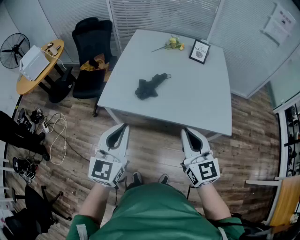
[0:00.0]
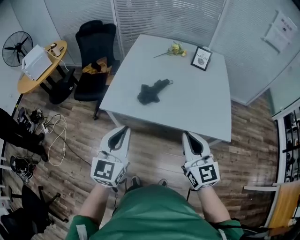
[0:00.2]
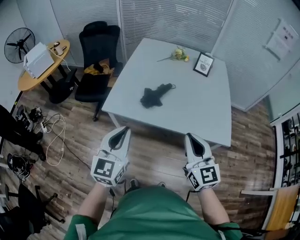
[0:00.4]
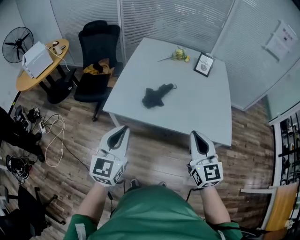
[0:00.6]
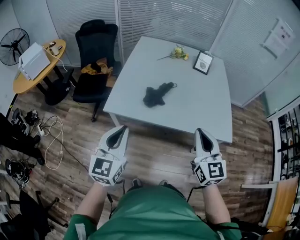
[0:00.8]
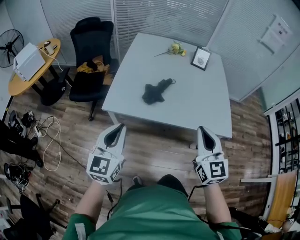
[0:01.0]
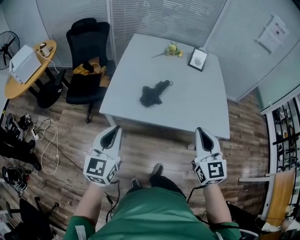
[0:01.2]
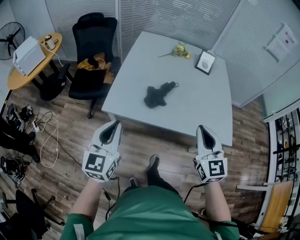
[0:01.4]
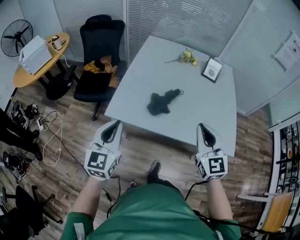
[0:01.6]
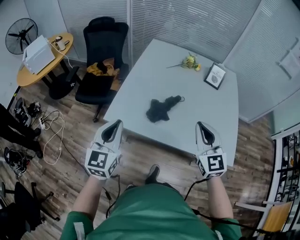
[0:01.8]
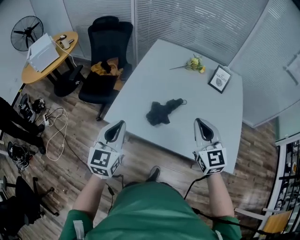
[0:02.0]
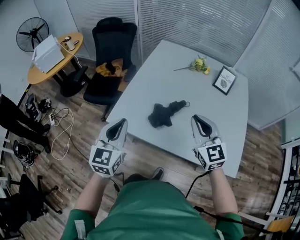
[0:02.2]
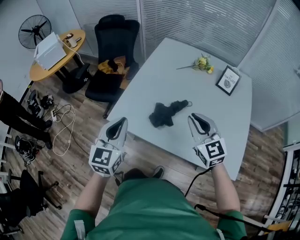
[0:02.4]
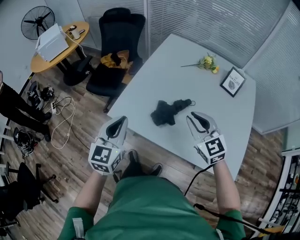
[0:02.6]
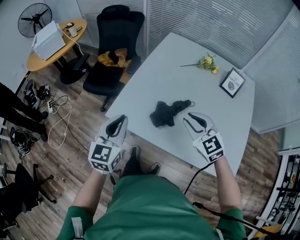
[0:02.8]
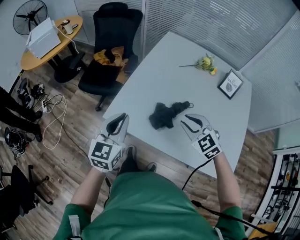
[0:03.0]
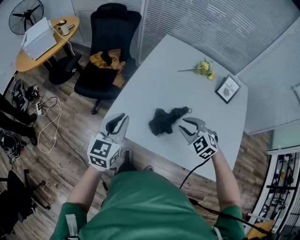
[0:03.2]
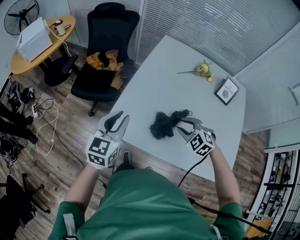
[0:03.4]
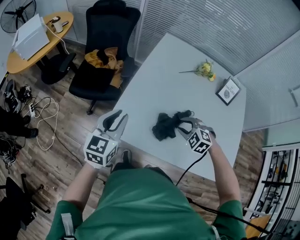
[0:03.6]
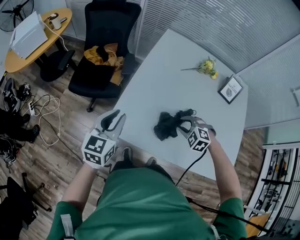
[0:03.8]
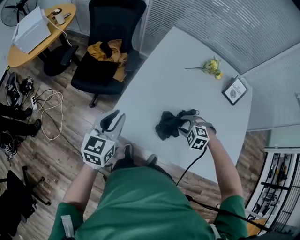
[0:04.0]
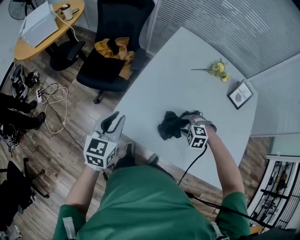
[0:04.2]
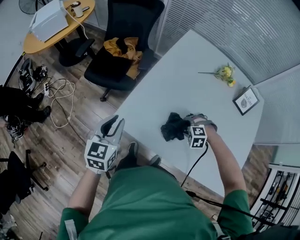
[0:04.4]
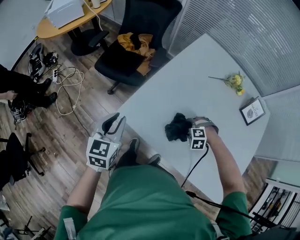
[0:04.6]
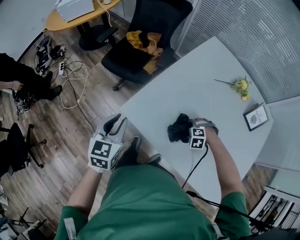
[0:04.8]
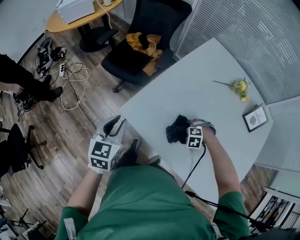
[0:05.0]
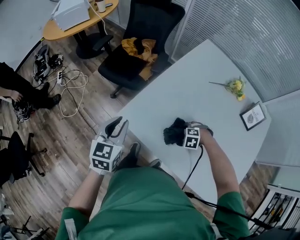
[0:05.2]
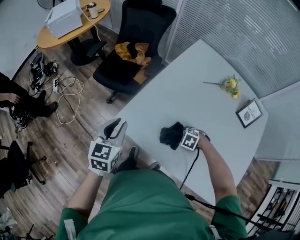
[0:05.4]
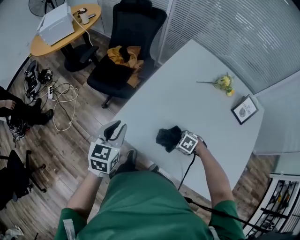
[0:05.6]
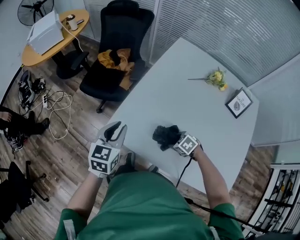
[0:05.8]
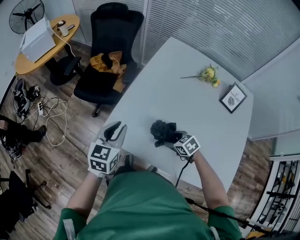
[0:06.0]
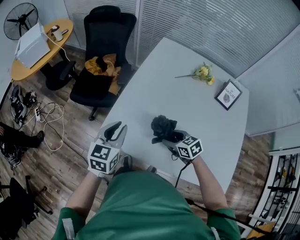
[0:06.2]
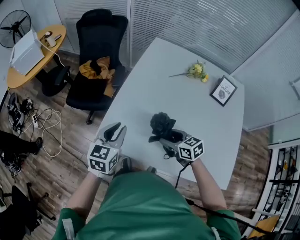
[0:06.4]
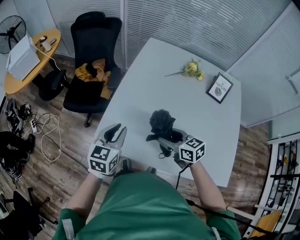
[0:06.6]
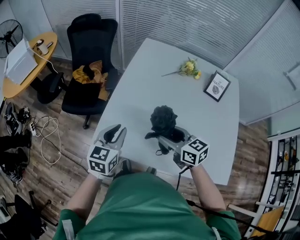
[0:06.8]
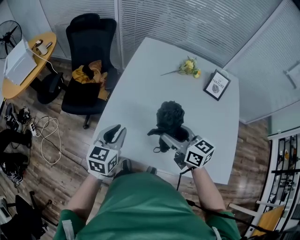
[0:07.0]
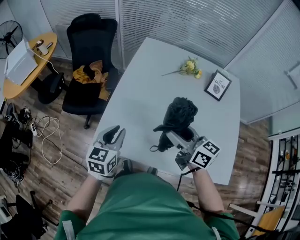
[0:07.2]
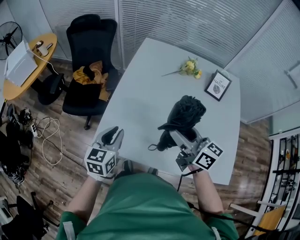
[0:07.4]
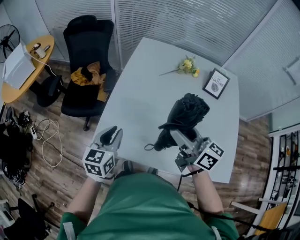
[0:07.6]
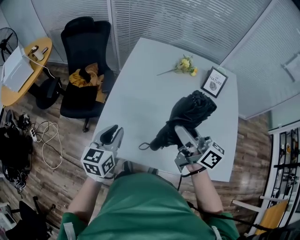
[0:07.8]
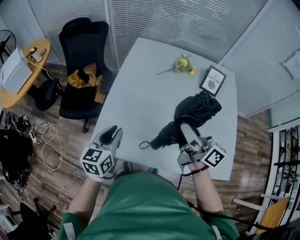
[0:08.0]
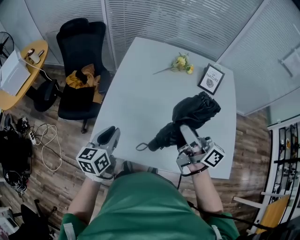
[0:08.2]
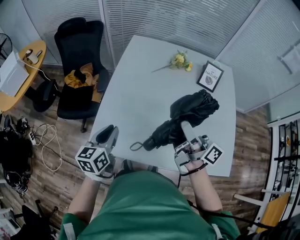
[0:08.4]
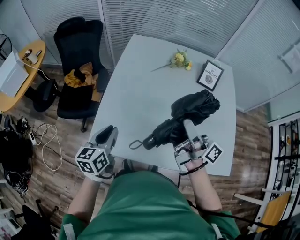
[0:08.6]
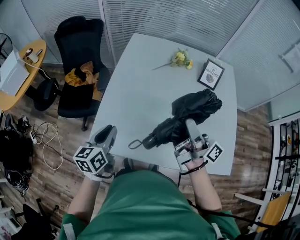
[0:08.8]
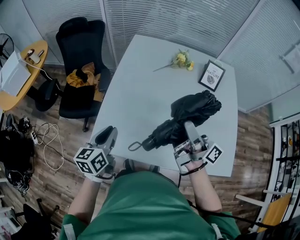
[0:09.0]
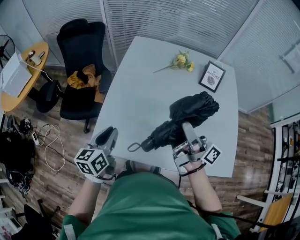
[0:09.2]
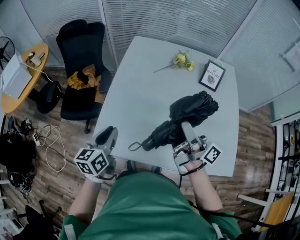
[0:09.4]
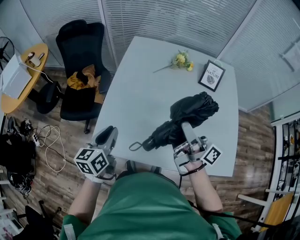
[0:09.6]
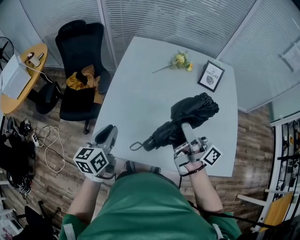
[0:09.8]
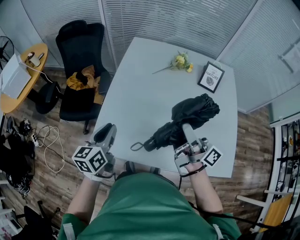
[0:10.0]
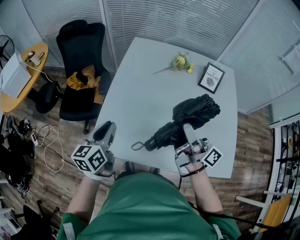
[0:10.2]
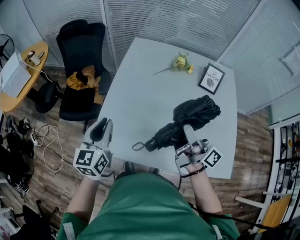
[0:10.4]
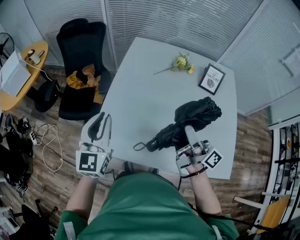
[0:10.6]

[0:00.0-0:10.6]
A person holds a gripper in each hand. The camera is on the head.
0:00.0 to 0:01.6: The left gripper moves to the left and forward, some 20 cm. The right gripper moves forward and to the left, some 15 cm.
0:01.6 to 0:03.0: The right gripper heads forward and downward, covering some 25 cm, and rotates roughly 50 degrees, while the left gripper heads forward, covering approximately 15 cm.
0:03.0 to 0:04.6: The right gripper shifts about 25 cm downward, tips its fingers downward by roughly 50 degrees, and opens; the left gripper shifts by some 15 cm, and rotates about 20 degrees.
0:04.6 to 0:06.0: The right gripper is displaced upward by some 5 cm, and twists approximately 70 degrees clockwise, seen from behind; the left gripper shifts by approximately 10 cm.
0:06.0 to 0:07.6: The right gripper heads upward, covering about 30 cm, and tips its fingers upward by about 60 degrees. The left gripper heads to the right, covering about 5 cm.
0:07.6 to 0:09.0: The right gripper shifts approximately 5 cm to the right, and swivels some 40 degrees.
0:09.0 to 0:10.6: The left gripper goes roughly 10 cm upward, and turns by roughly 40 degrees.

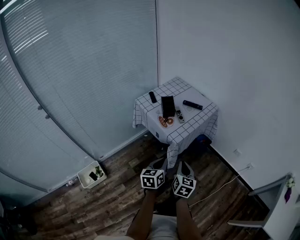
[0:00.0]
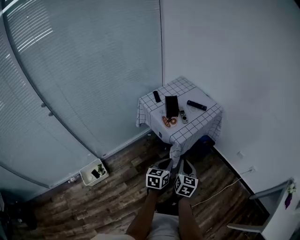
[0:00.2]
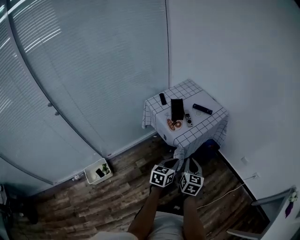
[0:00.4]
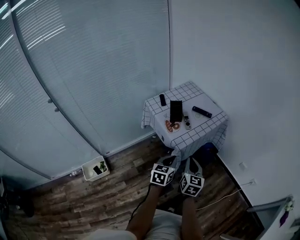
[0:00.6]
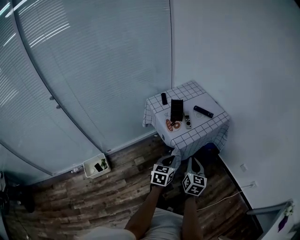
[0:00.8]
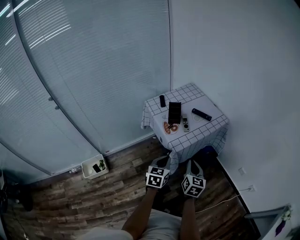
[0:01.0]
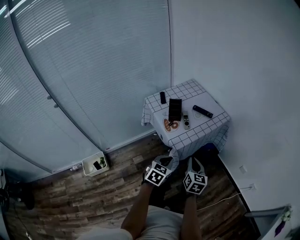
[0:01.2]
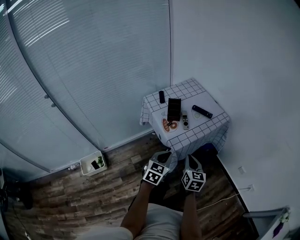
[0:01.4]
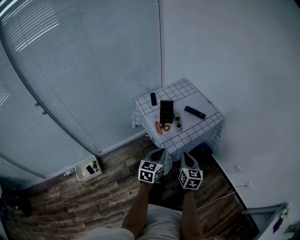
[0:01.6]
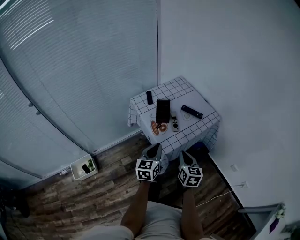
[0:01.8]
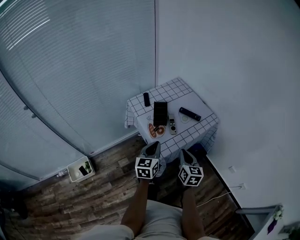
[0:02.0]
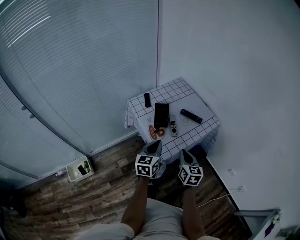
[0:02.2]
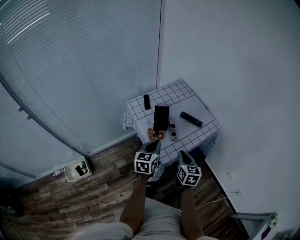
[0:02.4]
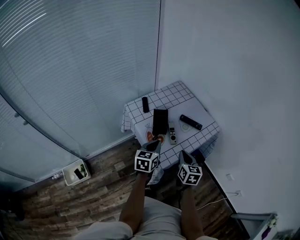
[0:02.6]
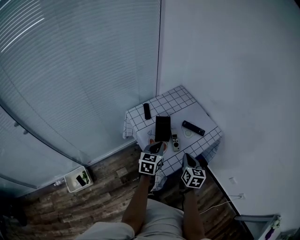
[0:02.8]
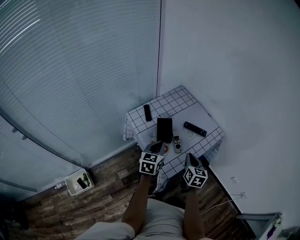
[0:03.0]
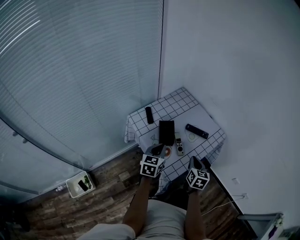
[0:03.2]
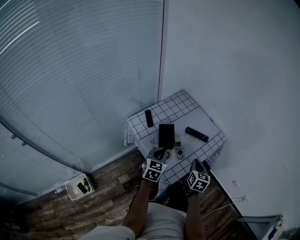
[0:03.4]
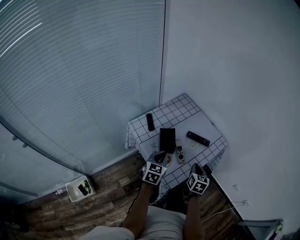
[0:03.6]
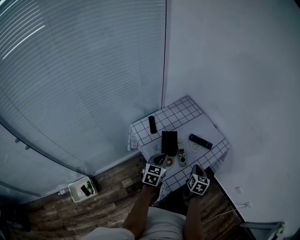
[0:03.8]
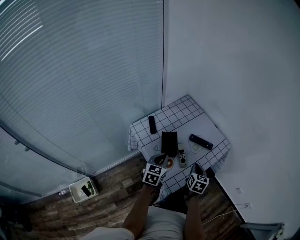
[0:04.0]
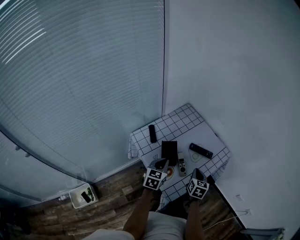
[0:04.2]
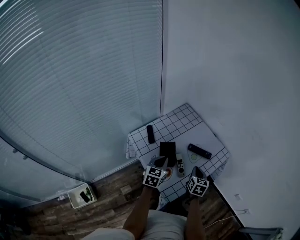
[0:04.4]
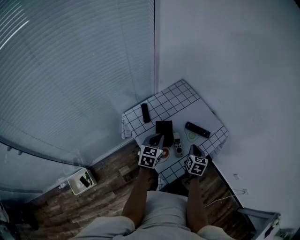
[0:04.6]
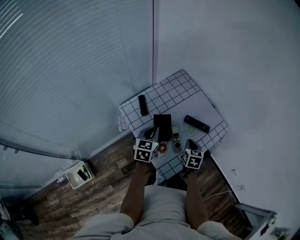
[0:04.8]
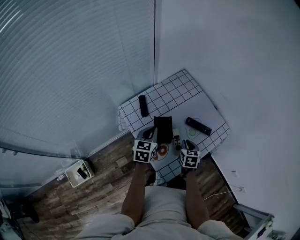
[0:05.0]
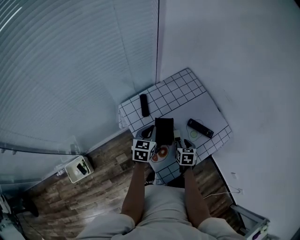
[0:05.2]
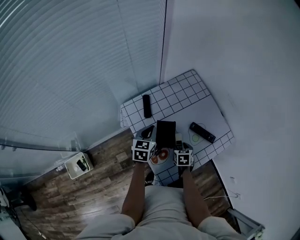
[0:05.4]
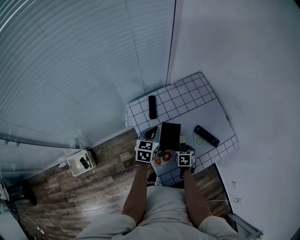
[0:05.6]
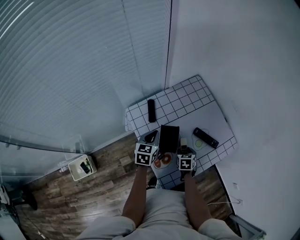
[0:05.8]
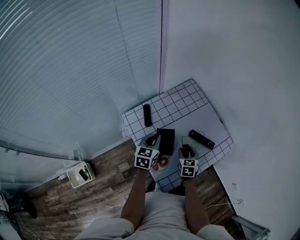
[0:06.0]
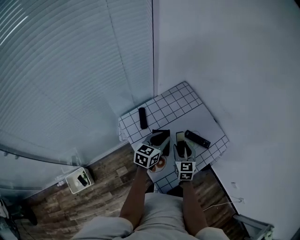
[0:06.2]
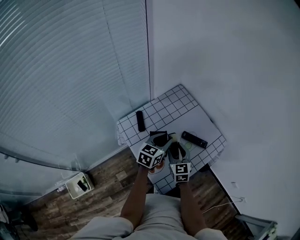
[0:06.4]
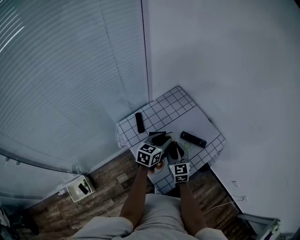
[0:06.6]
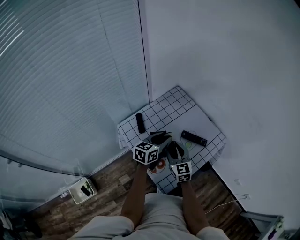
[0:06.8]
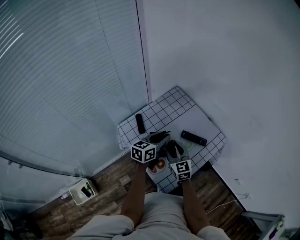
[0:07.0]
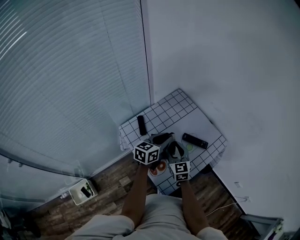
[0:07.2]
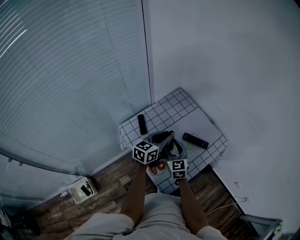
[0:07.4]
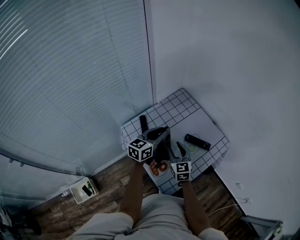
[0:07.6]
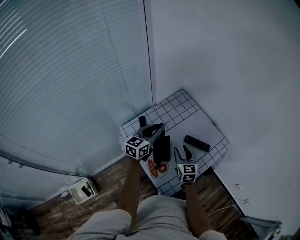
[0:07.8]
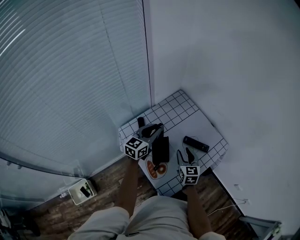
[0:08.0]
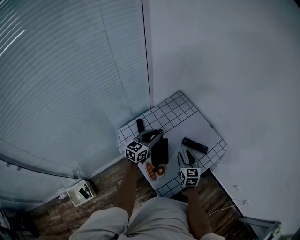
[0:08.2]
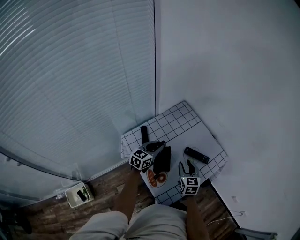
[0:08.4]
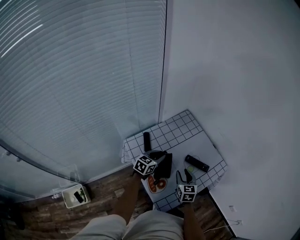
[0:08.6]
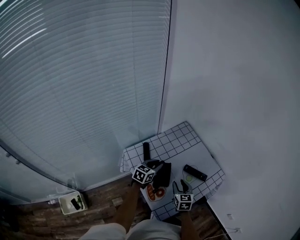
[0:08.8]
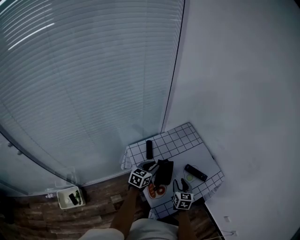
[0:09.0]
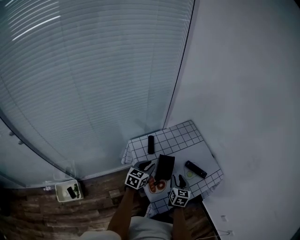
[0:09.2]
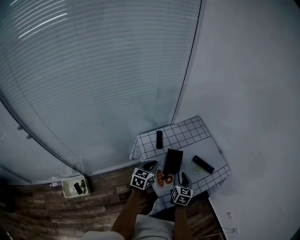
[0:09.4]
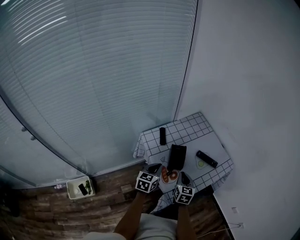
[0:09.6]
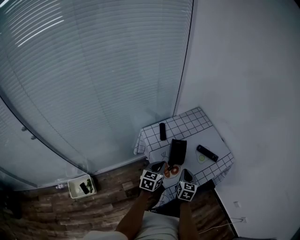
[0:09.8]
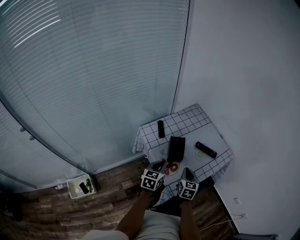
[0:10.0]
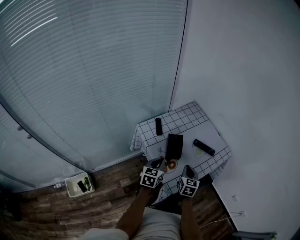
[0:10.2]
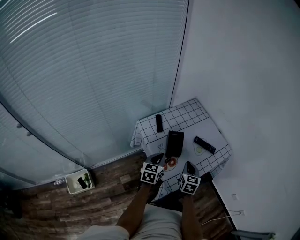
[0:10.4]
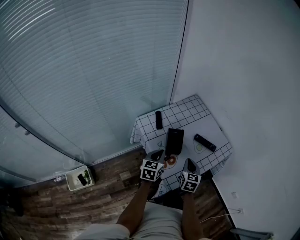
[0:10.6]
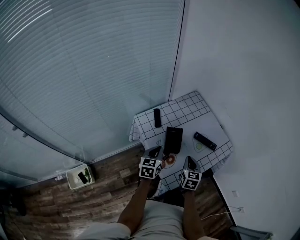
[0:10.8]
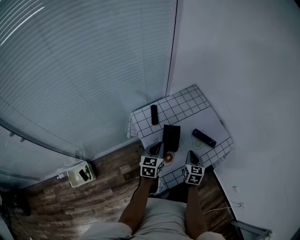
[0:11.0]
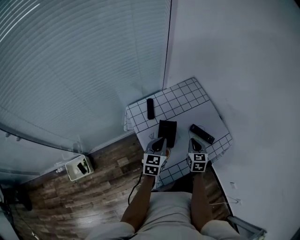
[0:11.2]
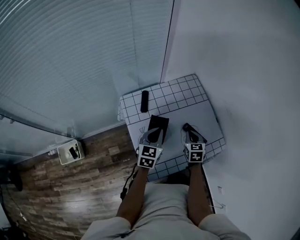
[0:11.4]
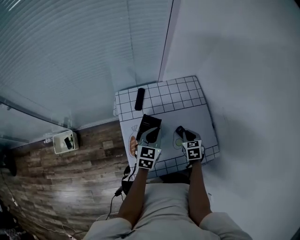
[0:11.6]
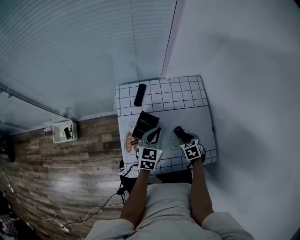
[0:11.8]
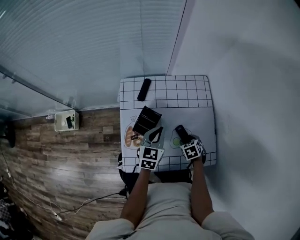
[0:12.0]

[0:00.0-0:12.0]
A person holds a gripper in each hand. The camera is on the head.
0:00.0 to 0:01.6: The grippers both shift forward by about 15 cm.
0:01.6 to 0:03.0: The two grippers go approximately 20 cm forward.
0:03.0 to 0:04.4: Both grippers move forward, about 10 cm.
0:04.4 to 0:06.0: The left gripper goes some 10 cm forward. The right gripper shifts roughly 15 cm forward, downward and to the left, swivels about 20 degrees, and opens.
0:06.0 to 0:07.6: The left gripper goes some 10 cm upward, swivels about 30 degrees, and opens up; the right gripper travels upward and to the left by approximately 15 cm, and turns by some 20 degrees.
0:07.6 to 0:09.0: The left gripper moves downward and to the left, about 10 cm; the right gripper ends up roughly 5 cm from where it was.
0:09.0 to 0:10.4: The grippers both shift backward by about 10 cm. The right gripper closes up. Meanwhile the left gripper closes.
0:10.4 to 0:12.0: The left gripper moves approximately 20 cm, and changes its angle by some 30 degrees. Meanwhile the right gripper ends up approximately 30 cm from where it was, tips its fingers downward by approximately 40 degrees, and opens its fingers.

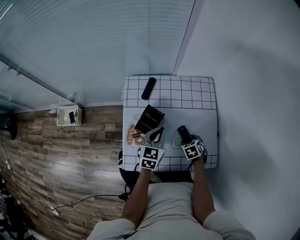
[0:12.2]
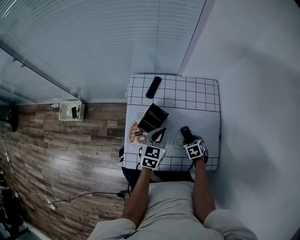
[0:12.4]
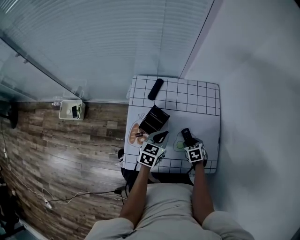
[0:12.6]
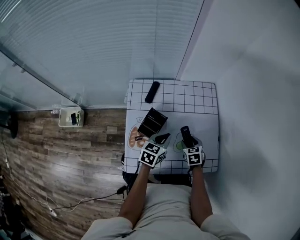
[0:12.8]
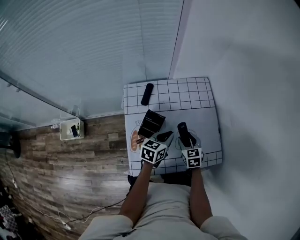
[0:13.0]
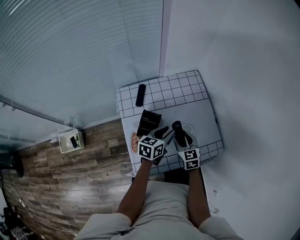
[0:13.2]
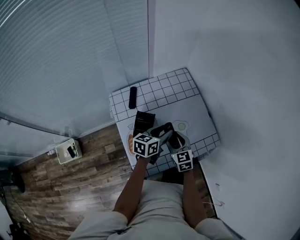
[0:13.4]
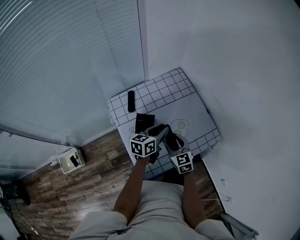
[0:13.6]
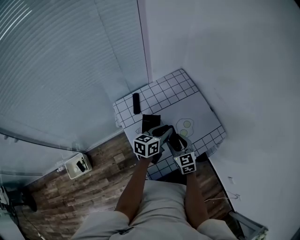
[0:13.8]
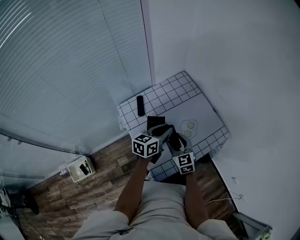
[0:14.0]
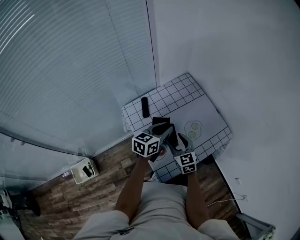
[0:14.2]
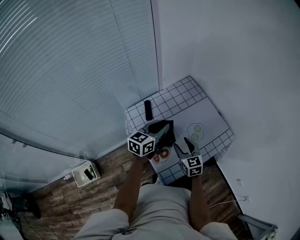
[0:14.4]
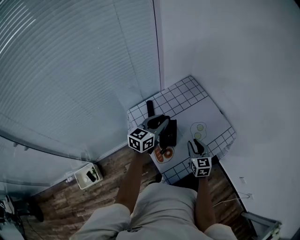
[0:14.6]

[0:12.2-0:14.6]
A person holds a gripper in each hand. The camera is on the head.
0:12.2 to 0:13.4: The right gripper moves upward, roughly 15 cm, and tips its fingers upward by some 40 degrees. Meanwhile the left gripper ends up some 5 cm from where it was, changes its angle by some 40 degrees, and opens its fingers.
0:13.4 to 0:14.6: The right gripper shifts by about 5 cm, rotates approximately 20 degrees, and closes its fingers, while the left gripper shifts approximately 20 cm to the left and upward, swivels about 30 degrees, and closes.
